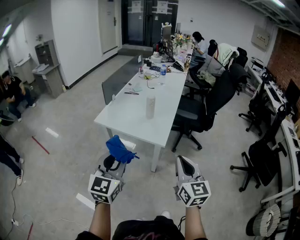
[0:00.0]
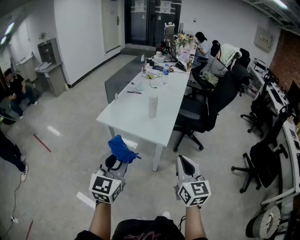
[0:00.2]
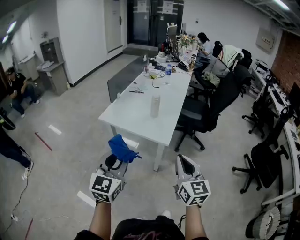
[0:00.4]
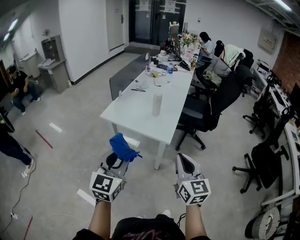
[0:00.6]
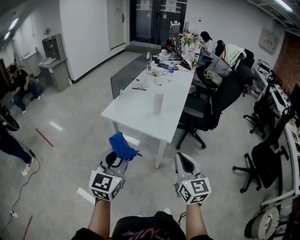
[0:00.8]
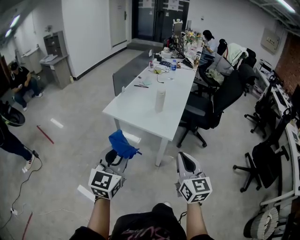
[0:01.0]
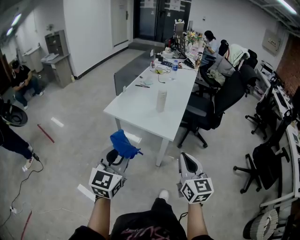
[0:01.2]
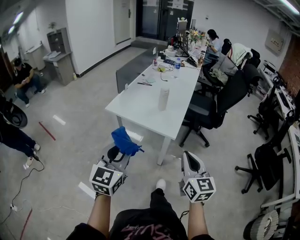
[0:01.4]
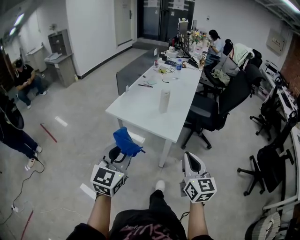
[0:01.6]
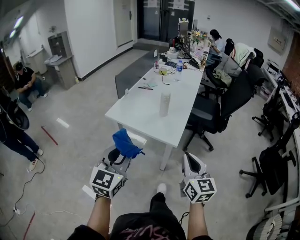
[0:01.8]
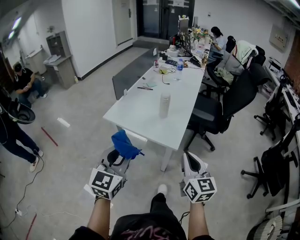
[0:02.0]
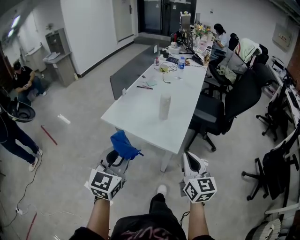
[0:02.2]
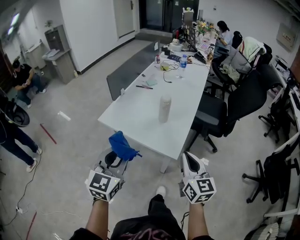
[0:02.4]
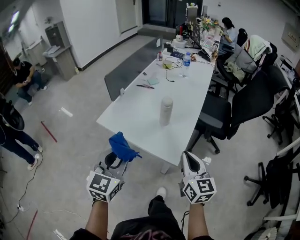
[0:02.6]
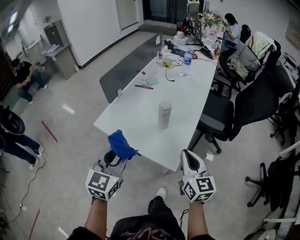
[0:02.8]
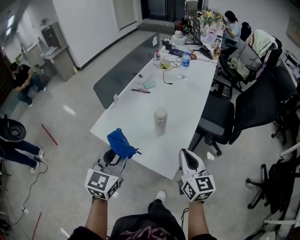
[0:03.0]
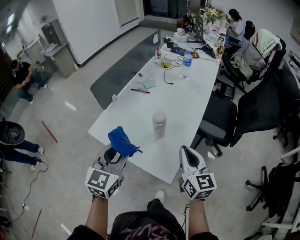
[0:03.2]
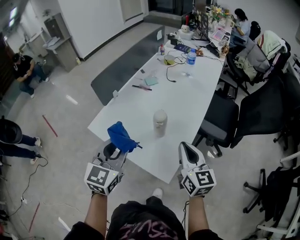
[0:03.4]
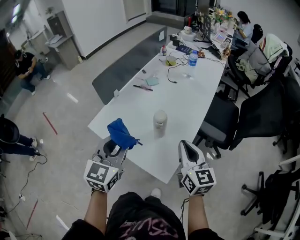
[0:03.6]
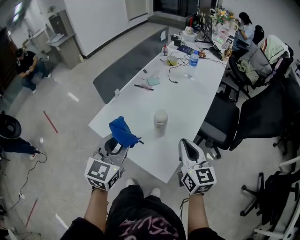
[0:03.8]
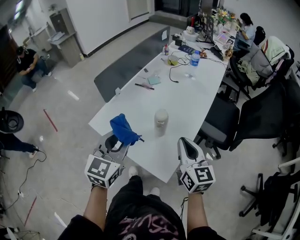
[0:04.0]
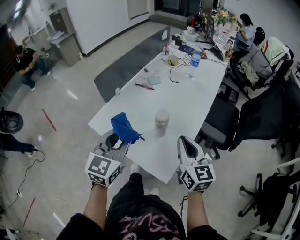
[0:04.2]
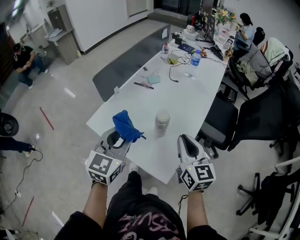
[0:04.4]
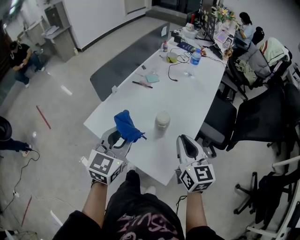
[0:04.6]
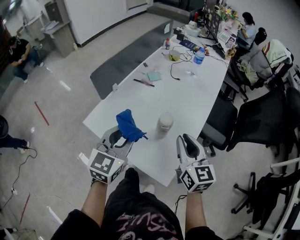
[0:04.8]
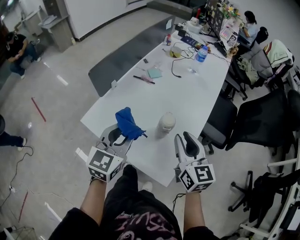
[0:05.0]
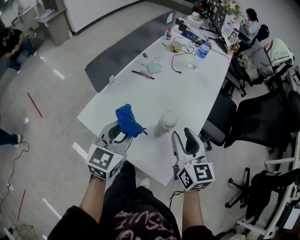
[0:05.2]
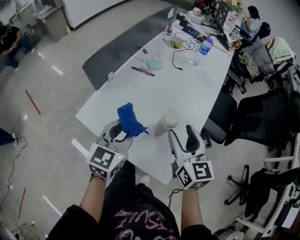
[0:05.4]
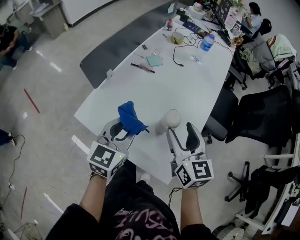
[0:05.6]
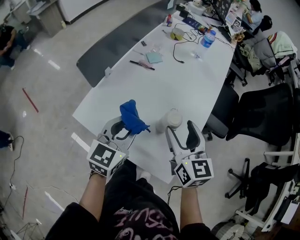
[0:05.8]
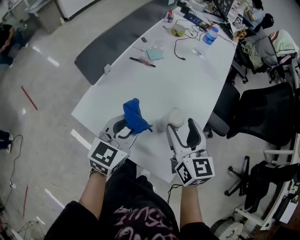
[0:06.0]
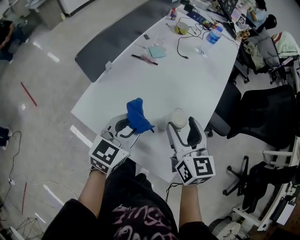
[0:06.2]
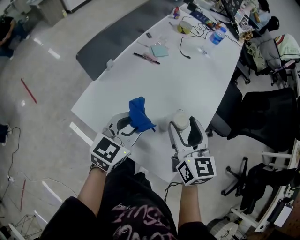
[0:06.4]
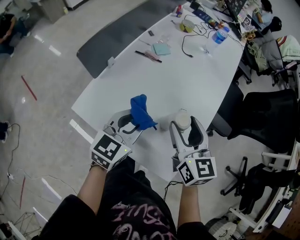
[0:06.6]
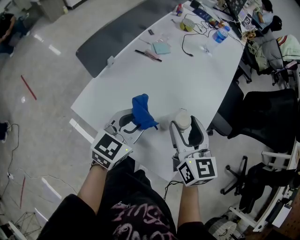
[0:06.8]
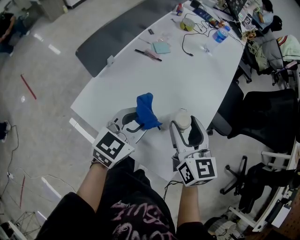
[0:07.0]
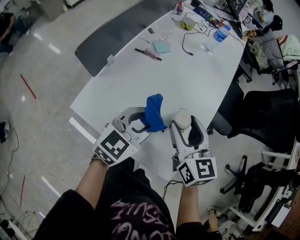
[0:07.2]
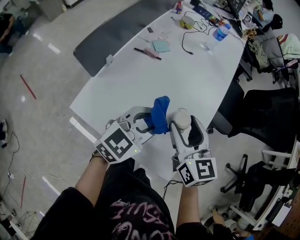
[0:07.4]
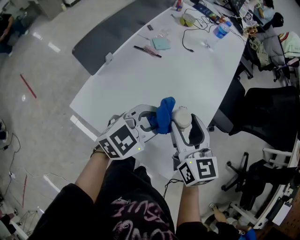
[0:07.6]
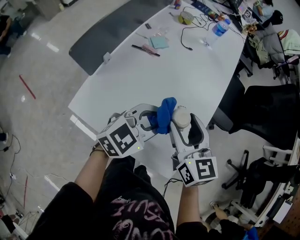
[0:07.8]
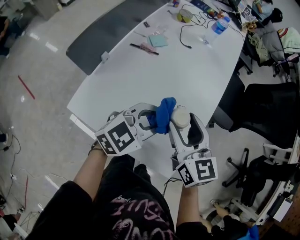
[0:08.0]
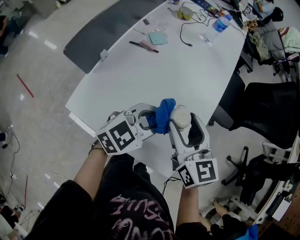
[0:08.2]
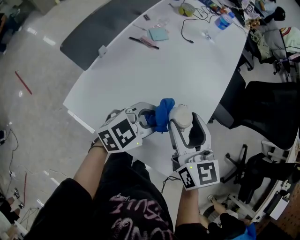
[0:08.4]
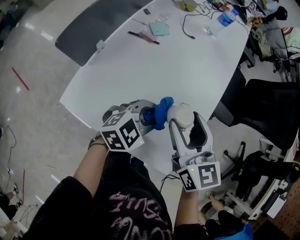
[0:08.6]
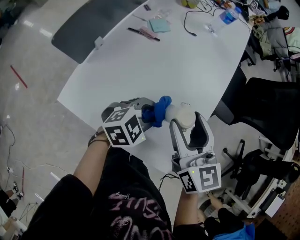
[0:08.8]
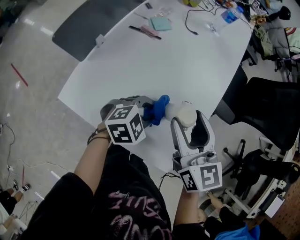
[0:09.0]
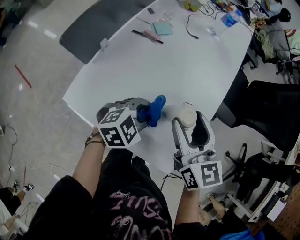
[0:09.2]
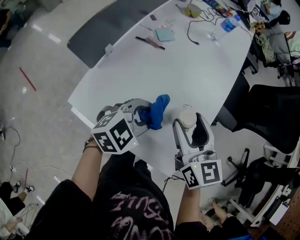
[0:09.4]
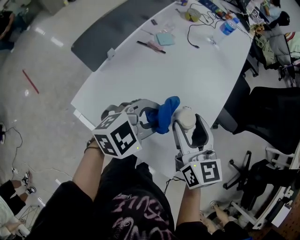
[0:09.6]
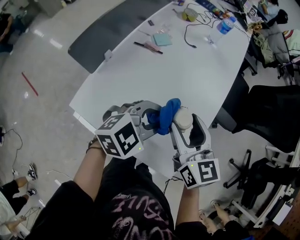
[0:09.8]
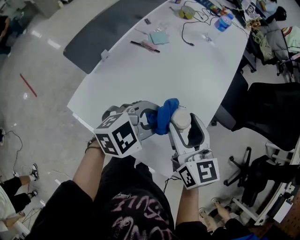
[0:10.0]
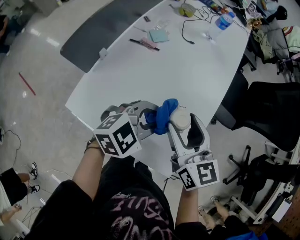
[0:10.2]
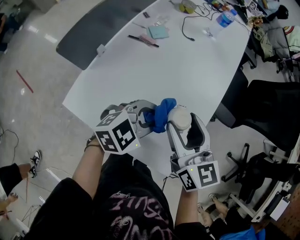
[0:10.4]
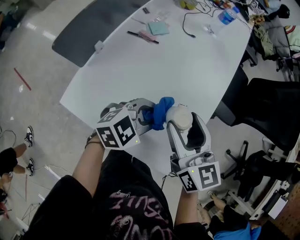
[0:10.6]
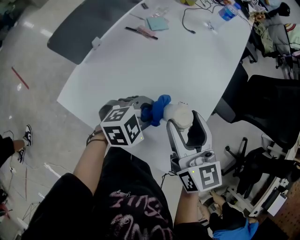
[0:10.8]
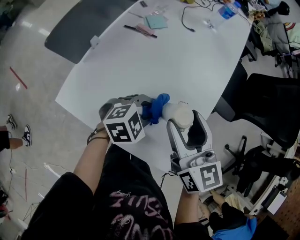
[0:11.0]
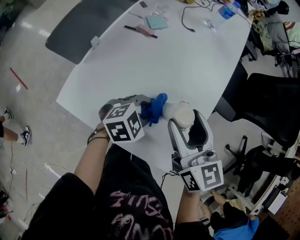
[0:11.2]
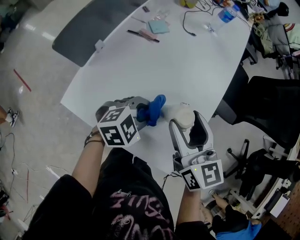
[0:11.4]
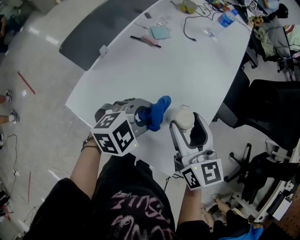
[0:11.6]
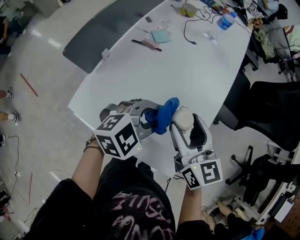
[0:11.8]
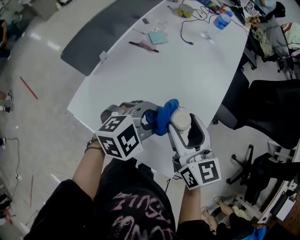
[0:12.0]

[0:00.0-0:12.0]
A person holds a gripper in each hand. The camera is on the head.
0:00.0 to 0:01.6: The grippers stay close to where they were, moving slightly.
0:01.6 to 0:03.0: Both grippers move forward, roughly 35 cm.
0:03.0 to 0:04.4: The grippers both shift forward by some 10 cm.
0:04.4 to 0:06.0: The left gripper shifts some 15 cm forward and downward. Meanwhile the right gripper heads forward and to the left, covering approximately 10 cm, and opens its fingers.
0:06.0 to 0:07.6: The left gripper travels to the right by roughly 5 cm, and swivels roughly 30 degrees.
0:07.6 to 0:09.0: The left gripper travels downward by approximately 15 cm, and swivels approximately 30 degrees.
0:09.0 to 0:10.4: The left gripper travels upward by roughly 10 cm.
0:10.4 to 0:12.0: The left gripper moves approximately 10 cm downward and comes back.

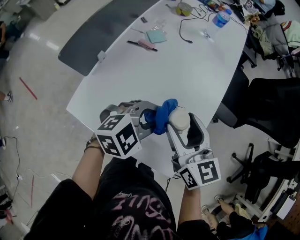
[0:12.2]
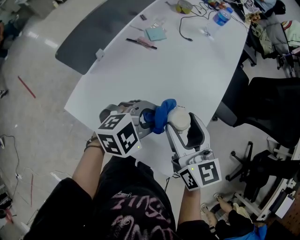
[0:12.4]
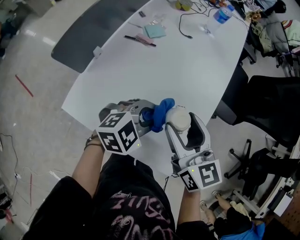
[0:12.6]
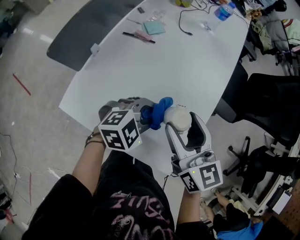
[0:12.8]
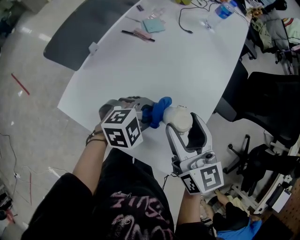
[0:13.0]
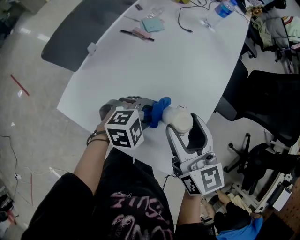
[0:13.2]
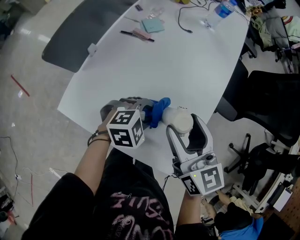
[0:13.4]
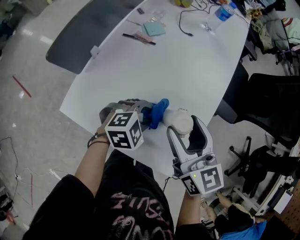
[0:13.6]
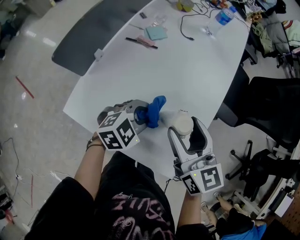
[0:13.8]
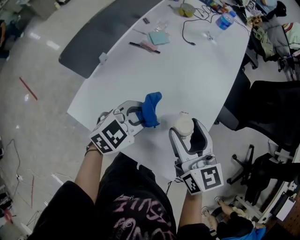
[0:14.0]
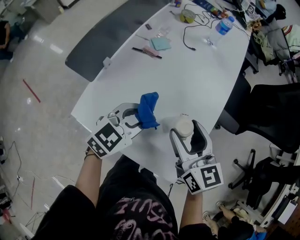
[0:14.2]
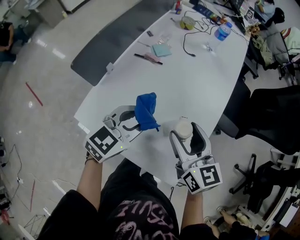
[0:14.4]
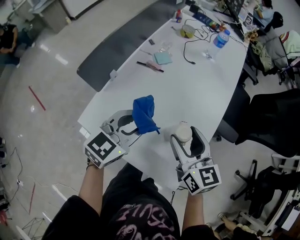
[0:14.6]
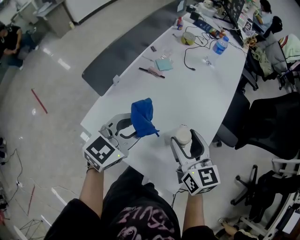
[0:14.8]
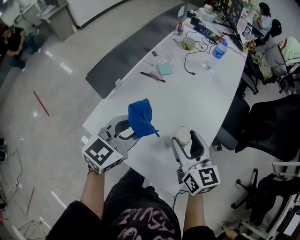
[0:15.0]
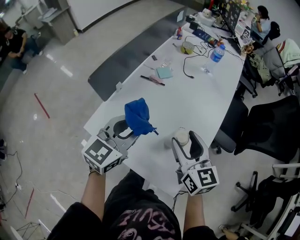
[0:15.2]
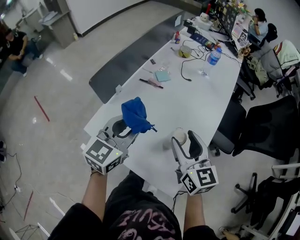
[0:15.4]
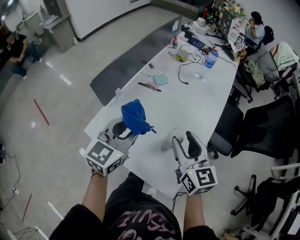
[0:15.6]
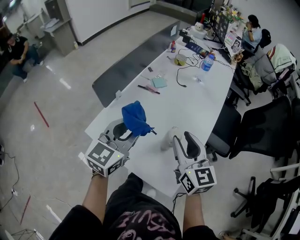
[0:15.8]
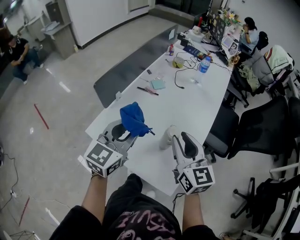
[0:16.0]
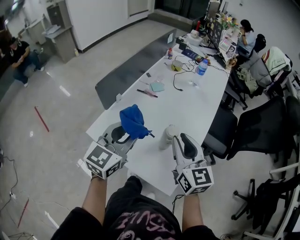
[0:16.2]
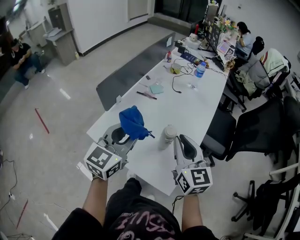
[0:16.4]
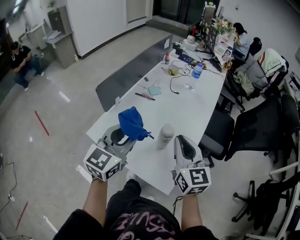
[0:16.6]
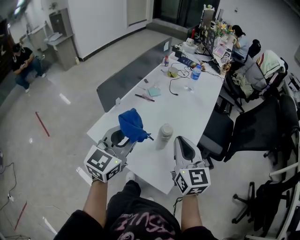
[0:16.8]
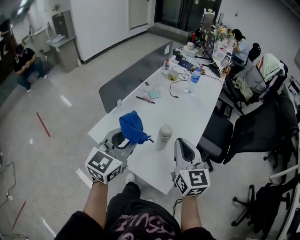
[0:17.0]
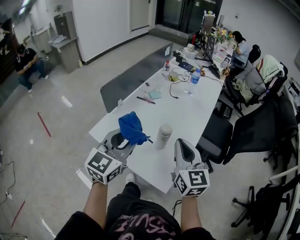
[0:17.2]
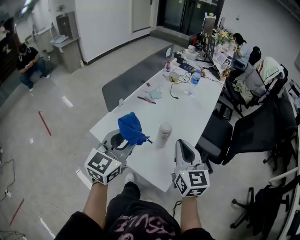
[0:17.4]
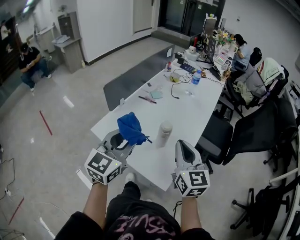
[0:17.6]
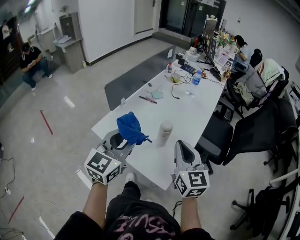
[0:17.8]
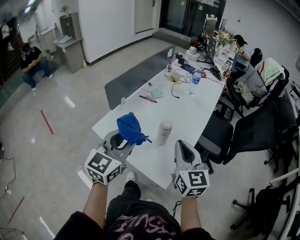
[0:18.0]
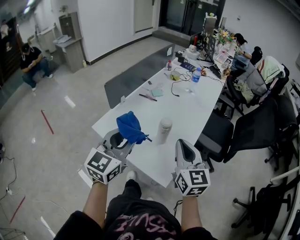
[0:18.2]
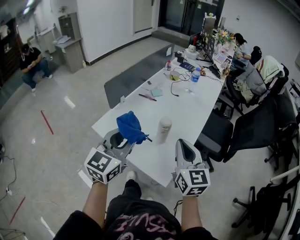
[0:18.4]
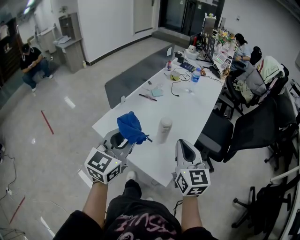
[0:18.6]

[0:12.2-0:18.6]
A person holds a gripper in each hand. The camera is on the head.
0:12.2 to 0:13.8: The left gripper heads downward, covering roughly 5 cm.
0:13.8 to 0:15.4: The left gripper travels upward and to the left by roughly 20 cm, and changes its angle by roughly 50 degrees.
0:15.4 to 0:17.0: Both grippers travel together backward and upward, roughly 15 cm. The right gripper closes up.
0:17.0 to 0:18.6: Both grippers move backward, some 5 cm.

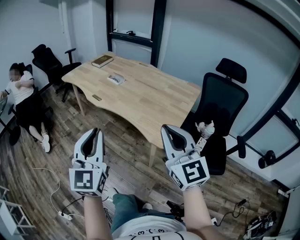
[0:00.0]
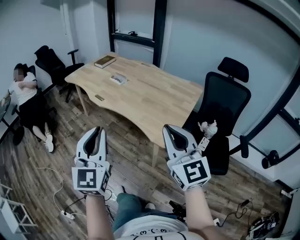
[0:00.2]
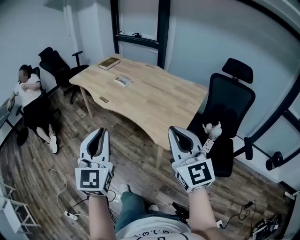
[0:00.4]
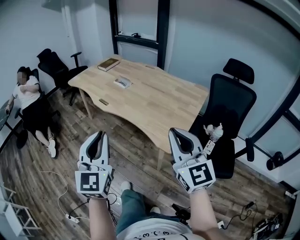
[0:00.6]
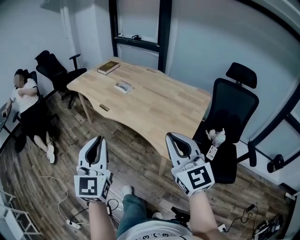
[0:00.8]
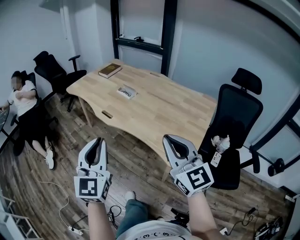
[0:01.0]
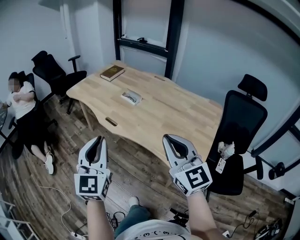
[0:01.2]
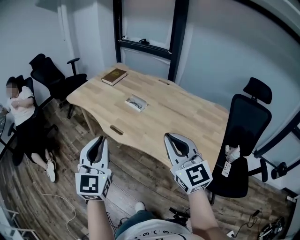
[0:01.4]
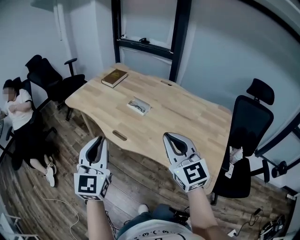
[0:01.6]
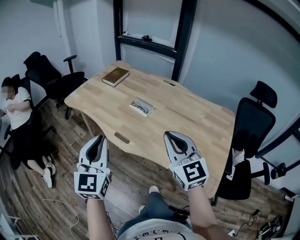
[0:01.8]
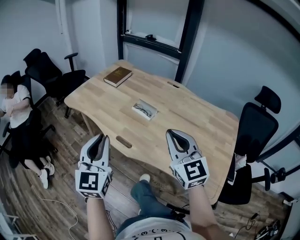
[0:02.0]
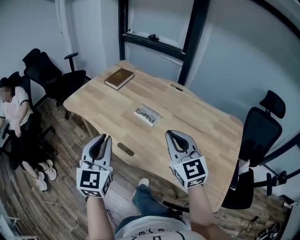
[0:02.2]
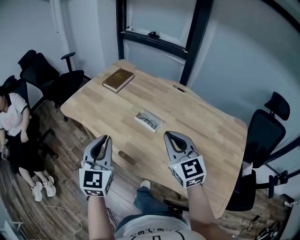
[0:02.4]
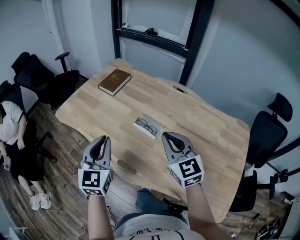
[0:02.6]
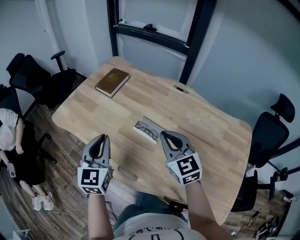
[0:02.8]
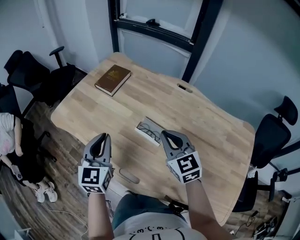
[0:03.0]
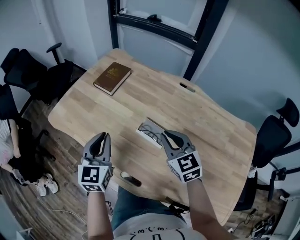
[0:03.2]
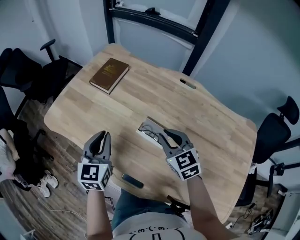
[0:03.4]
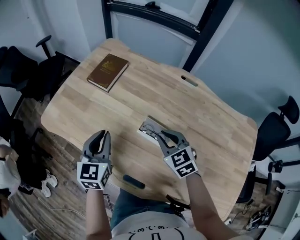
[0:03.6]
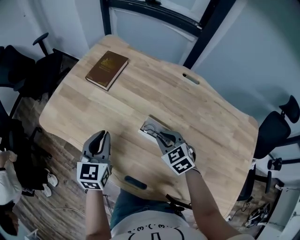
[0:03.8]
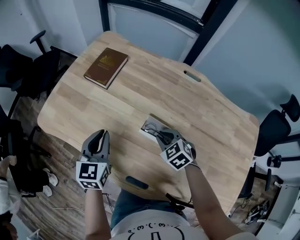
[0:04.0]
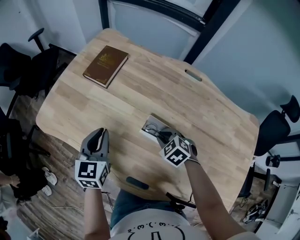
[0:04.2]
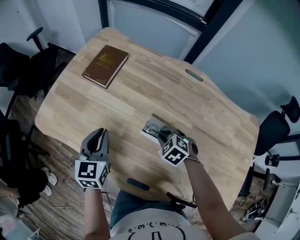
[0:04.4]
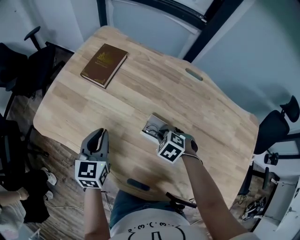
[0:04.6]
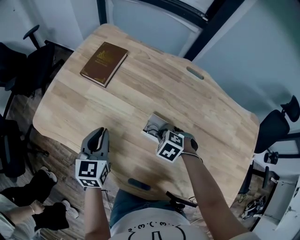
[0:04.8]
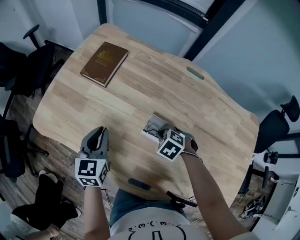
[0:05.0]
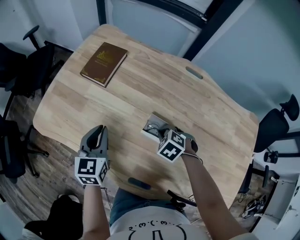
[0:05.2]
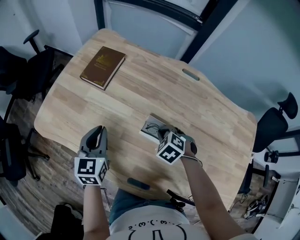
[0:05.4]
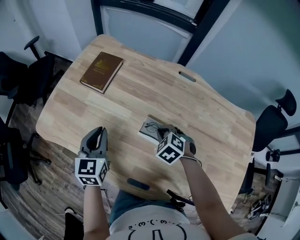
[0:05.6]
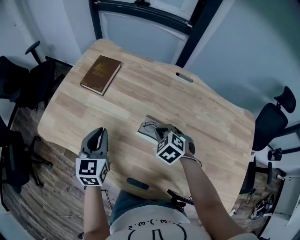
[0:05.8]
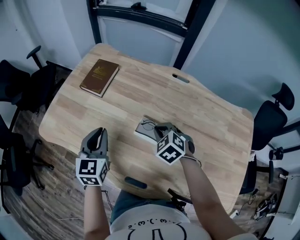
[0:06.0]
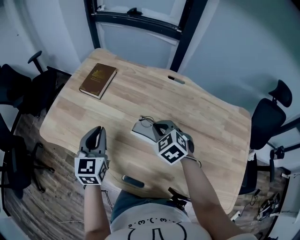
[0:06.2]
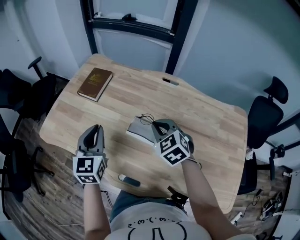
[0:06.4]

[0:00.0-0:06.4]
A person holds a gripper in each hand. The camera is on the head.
0:00.0 to 0:01.6: The grippers both shift forward and to the left by about 40 cm.
0:01.6 to 0:03.2: The right gripper shifts about 40 cm forward and downward, and turns by some 20 degrees, while the left gripper shifts roughly 40 cm forward.
0:03.2 to 0:04.8: The left gripper goes some 10 cm downward, while the right gripper travels downward by about 20 cm, and angles its fingers downward, by some 50 degrees.
0:04.8 to 0:06.4: The left gripper travels upward by approximately 10 cm, while the right gripper travels upward by about 20 cm, and angles its fingers upward, by approximately 40 degrees.
